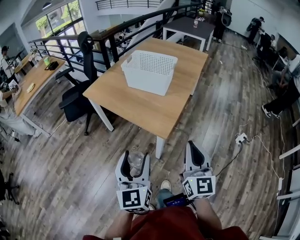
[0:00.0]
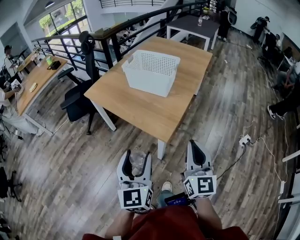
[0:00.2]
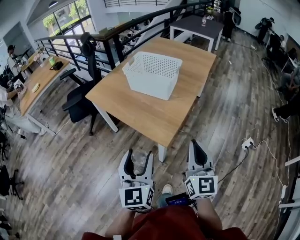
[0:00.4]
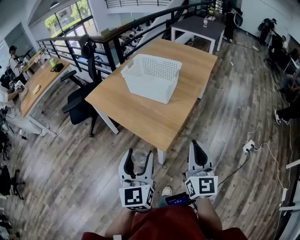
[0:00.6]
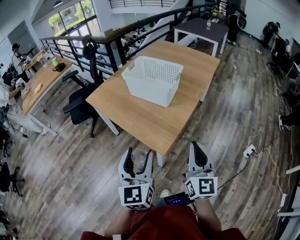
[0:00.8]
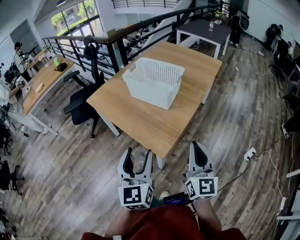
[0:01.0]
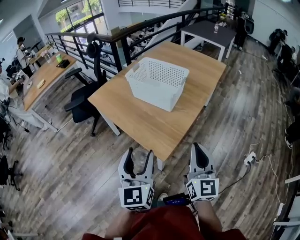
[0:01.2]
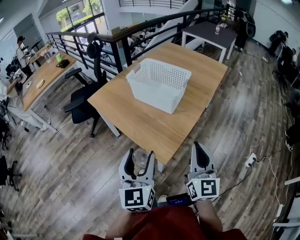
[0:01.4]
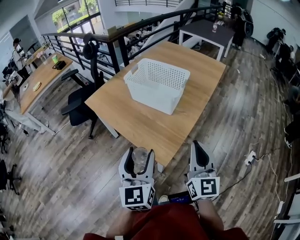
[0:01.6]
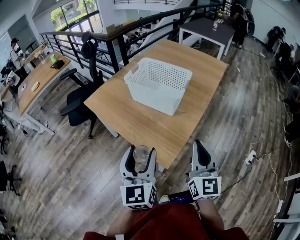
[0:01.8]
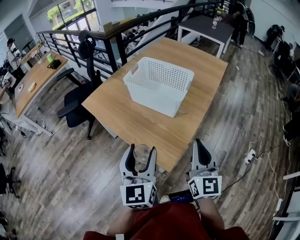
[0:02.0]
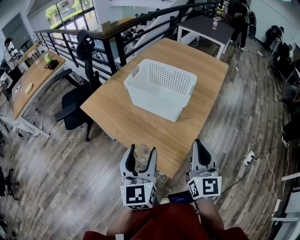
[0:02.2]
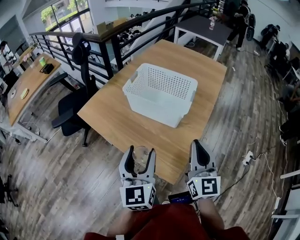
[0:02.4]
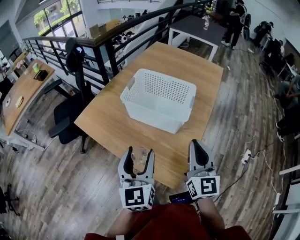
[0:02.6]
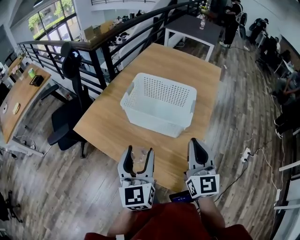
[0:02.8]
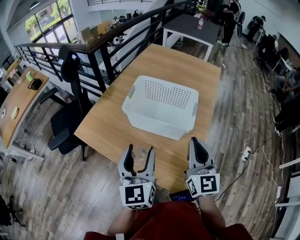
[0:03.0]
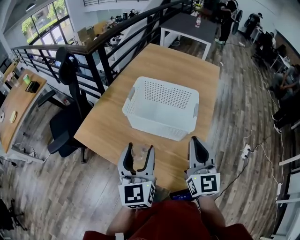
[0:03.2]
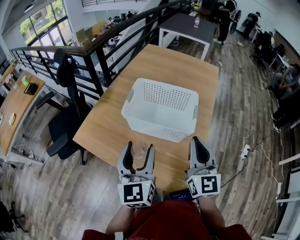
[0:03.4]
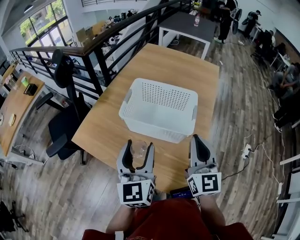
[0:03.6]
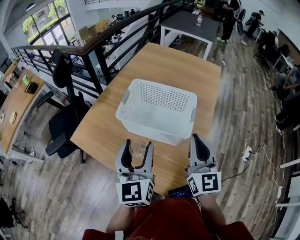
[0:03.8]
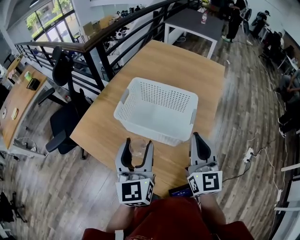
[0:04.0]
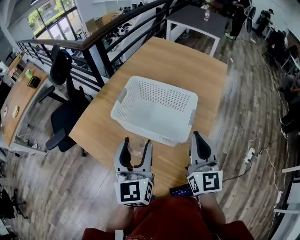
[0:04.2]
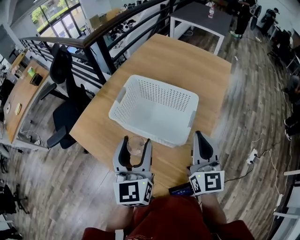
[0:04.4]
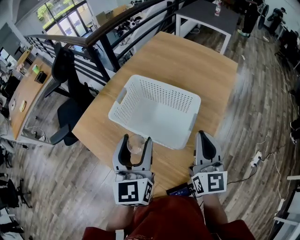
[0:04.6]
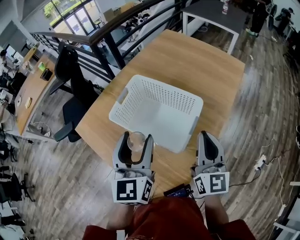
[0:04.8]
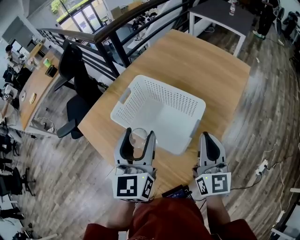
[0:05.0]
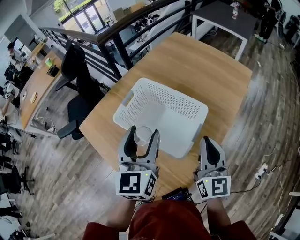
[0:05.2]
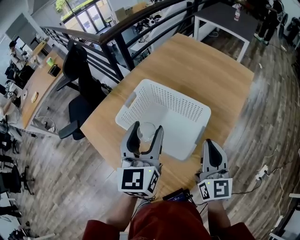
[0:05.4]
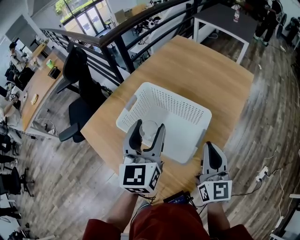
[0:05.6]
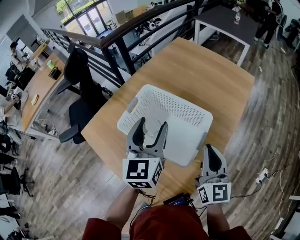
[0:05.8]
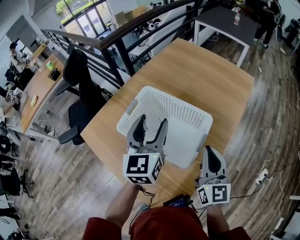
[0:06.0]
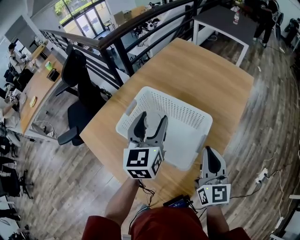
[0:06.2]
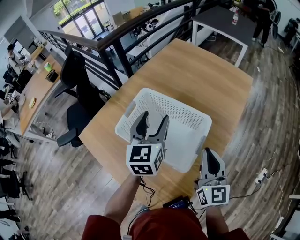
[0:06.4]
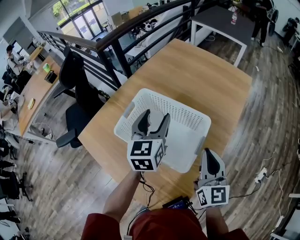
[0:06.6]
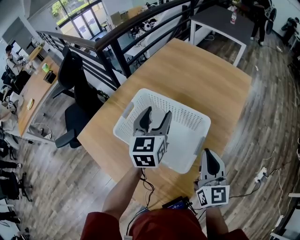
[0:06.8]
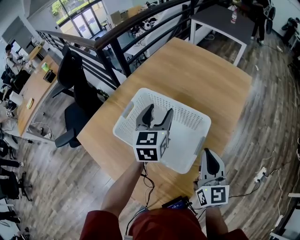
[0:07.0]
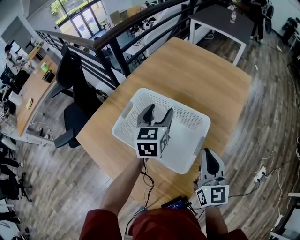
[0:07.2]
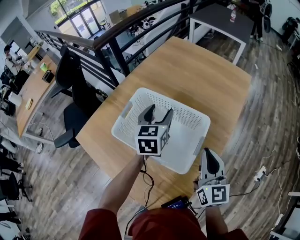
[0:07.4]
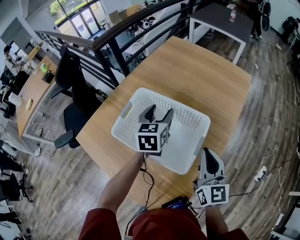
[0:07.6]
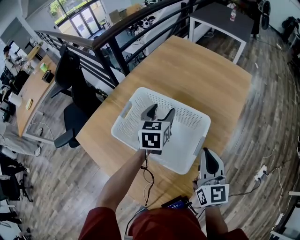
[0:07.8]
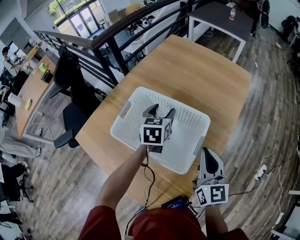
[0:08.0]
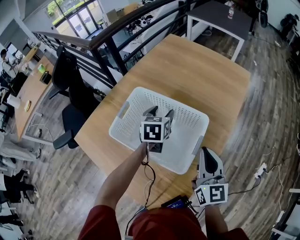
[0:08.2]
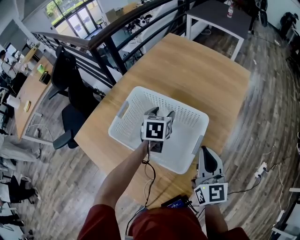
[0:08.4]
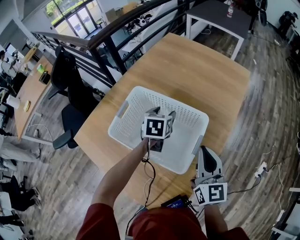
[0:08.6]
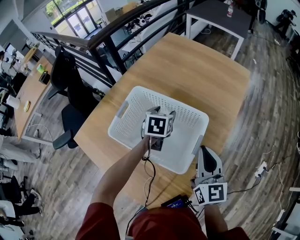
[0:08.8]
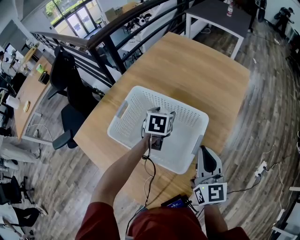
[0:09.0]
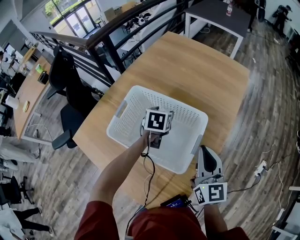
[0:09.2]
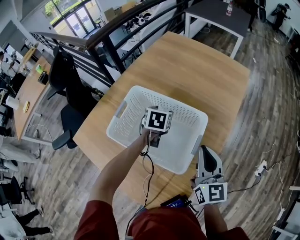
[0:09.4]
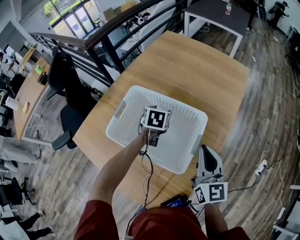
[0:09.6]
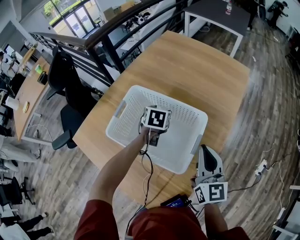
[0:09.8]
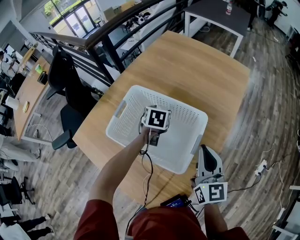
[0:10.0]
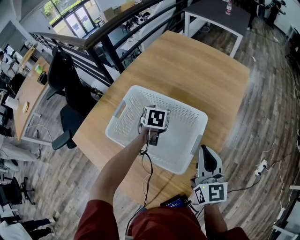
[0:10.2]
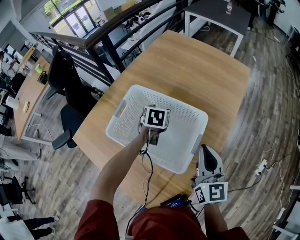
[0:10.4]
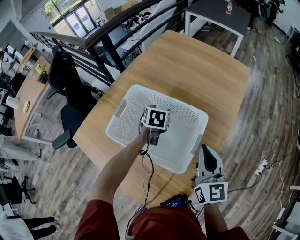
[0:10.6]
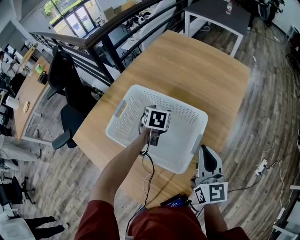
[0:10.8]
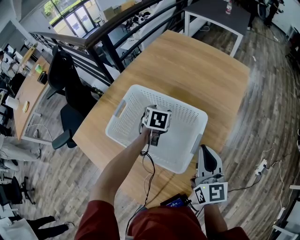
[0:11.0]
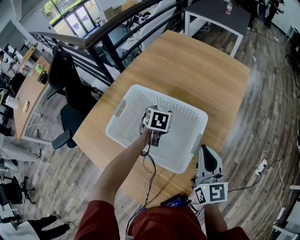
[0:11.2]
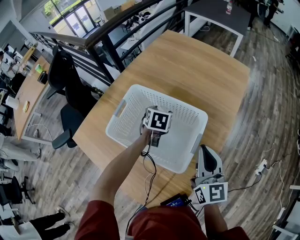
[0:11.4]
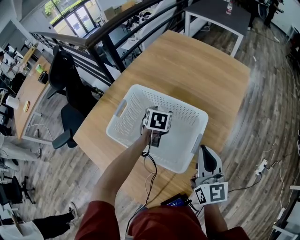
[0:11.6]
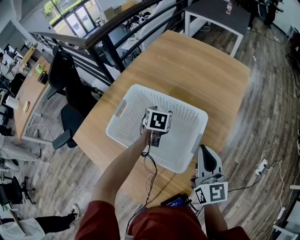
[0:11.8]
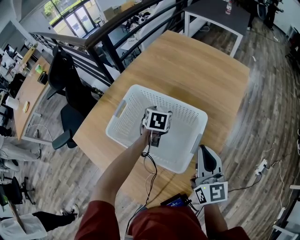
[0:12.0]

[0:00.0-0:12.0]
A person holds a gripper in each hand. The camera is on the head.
0:00.0 to 0:01.6: Both grippers travel together forward, some 15 cm.
0:01.6 to 0:03.0: The left gripper is displaced forward by roughly 20 cm. The right gripper shifts some 20 cm forward and to the left.
0:03.0 to 0:04.4: Both grippers travel together forward and to the right, some 10 cm.
0:04.4 to 0:06.0: The right gripper is displaced forward by about 5 cm; the left gripper heads forward, covering roughly 15 cm.
0:06.0 to 0:07.6: The left gripper travels downward and forward by about 15 cm, and rotates about 20 degrees.
0:07.6 to 0:09.0: The left gripper shifts approximately 10 cm downward, and rotates about 20 degrees.
0:09.0 to 0:10.4: The grippers make only small movements.
0:10.4 to 0:12.0: Neither gripper changes place.

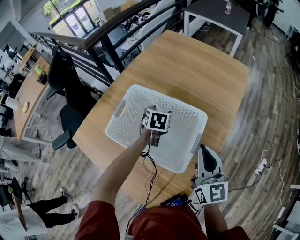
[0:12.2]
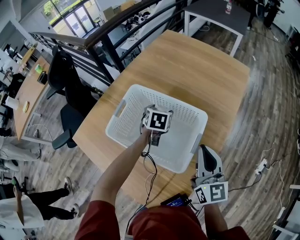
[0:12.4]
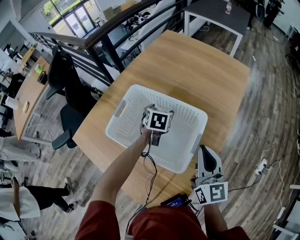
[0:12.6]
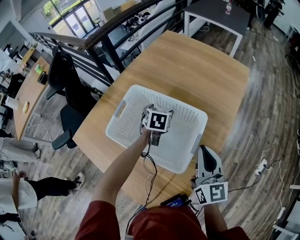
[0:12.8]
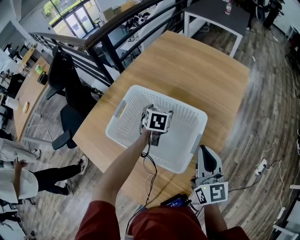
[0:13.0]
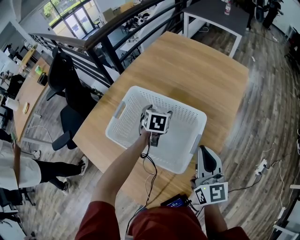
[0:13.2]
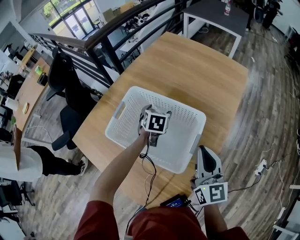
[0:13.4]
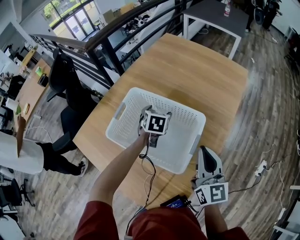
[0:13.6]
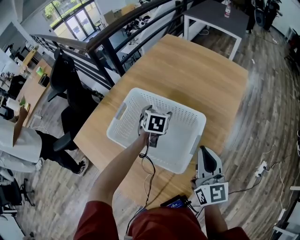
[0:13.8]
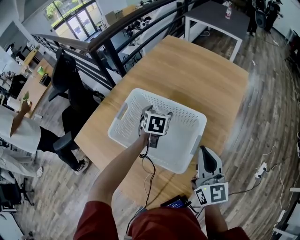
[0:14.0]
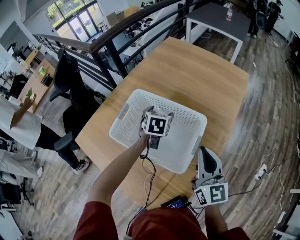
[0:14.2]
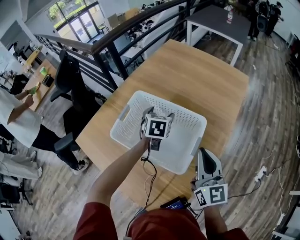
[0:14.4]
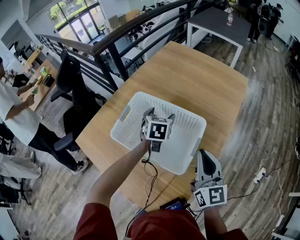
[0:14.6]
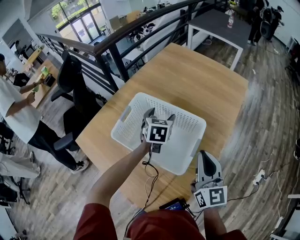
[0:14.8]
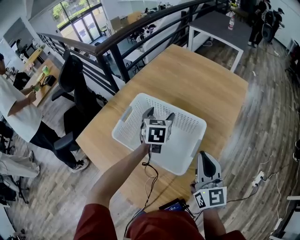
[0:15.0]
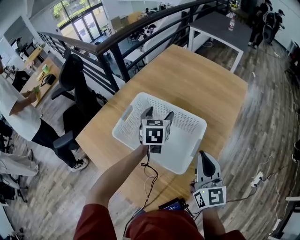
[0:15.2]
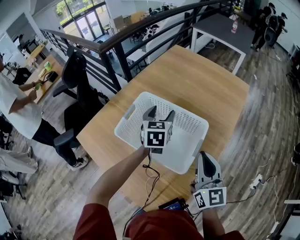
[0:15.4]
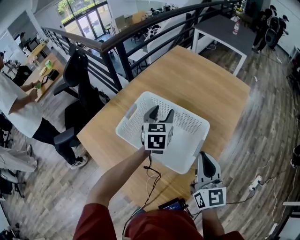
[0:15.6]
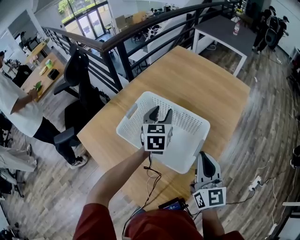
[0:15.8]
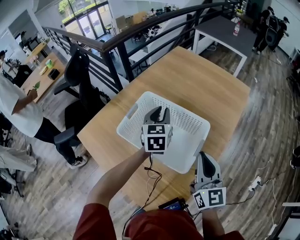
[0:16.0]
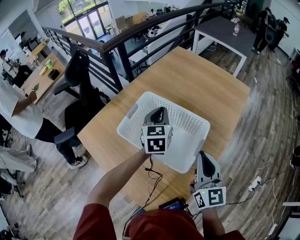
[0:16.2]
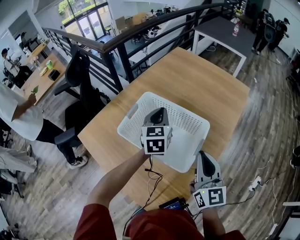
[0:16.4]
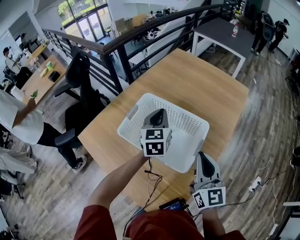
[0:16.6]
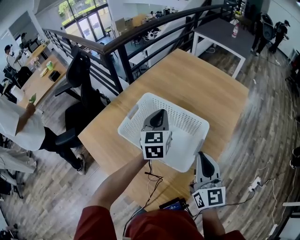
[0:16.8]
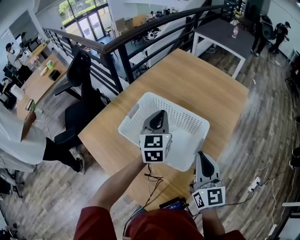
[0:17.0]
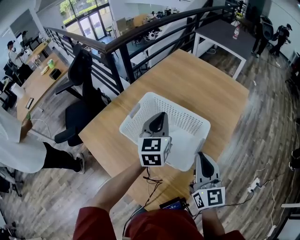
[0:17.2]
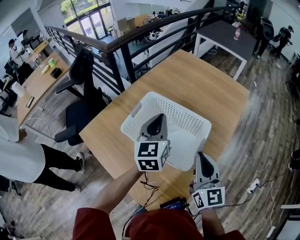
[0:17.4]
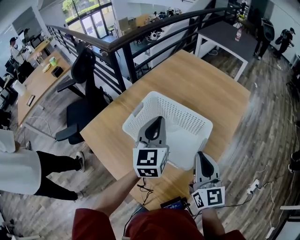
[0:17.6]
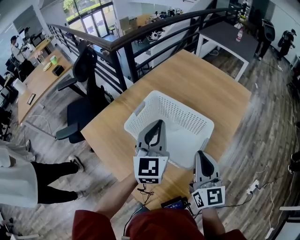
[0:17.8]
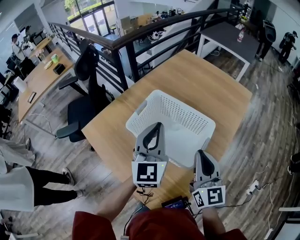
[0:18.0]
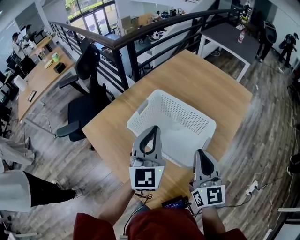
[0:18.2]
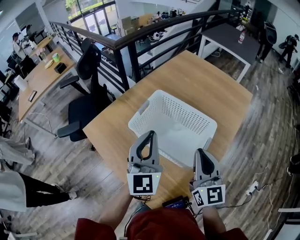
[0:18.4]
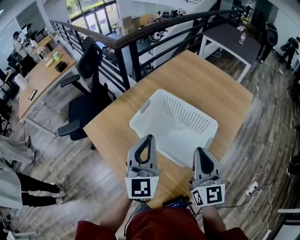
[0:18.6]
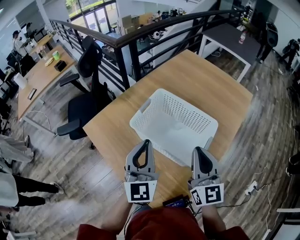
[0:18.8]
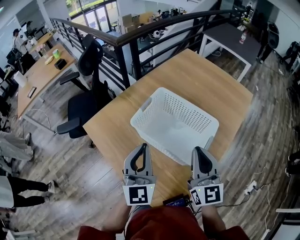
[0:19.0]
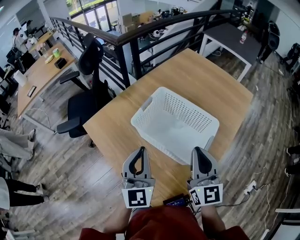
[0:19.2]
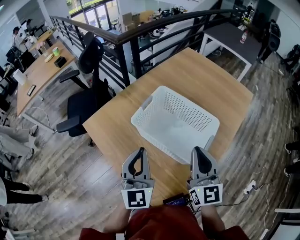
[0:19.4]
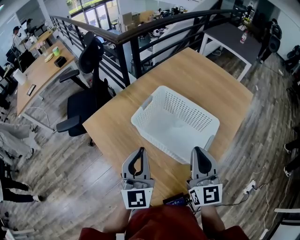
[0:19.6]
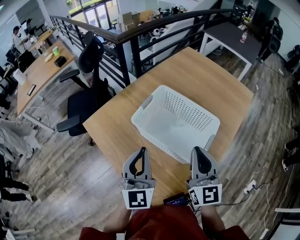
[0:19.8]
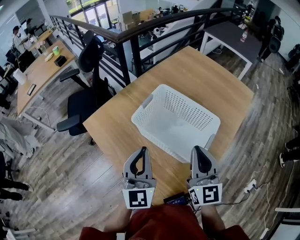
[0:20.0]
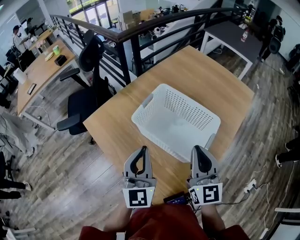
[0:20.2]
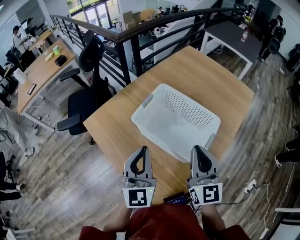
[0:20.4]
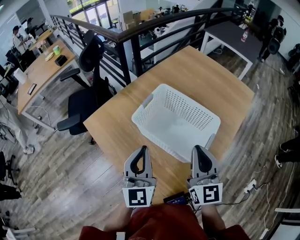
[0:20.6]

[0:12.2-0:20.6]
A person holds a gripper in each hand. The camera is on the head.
0:12.2 to 0:13.6: The grippers make only small movements.
0:13.6 to 0:15.0: The left gripper is displaced upward by some 10 cm.
0:15.0 to 0:16.4: The left gripper shifts about 5 cm upward, and closes its fingers.
0:16.4 to 0:17.8: The left gripper heads backward and upward, covering roughly 15 cm.
0:17.8 to 0:19.2: The left gripper heads backward and to the left, covering roughly 15 cm.
0:19.2 to 0:20.6: Both grippers stay put.

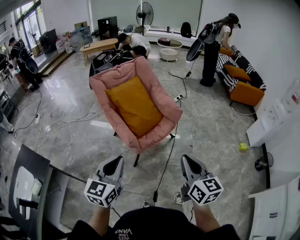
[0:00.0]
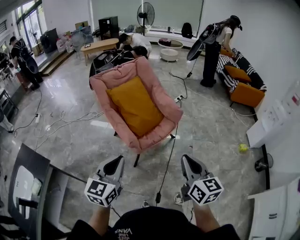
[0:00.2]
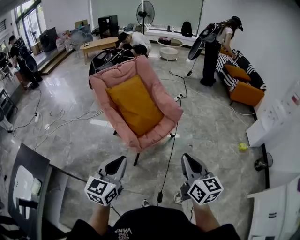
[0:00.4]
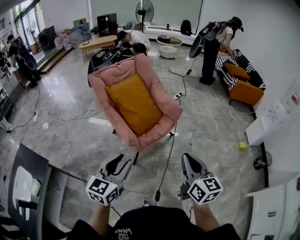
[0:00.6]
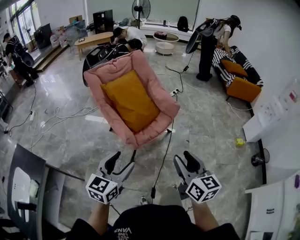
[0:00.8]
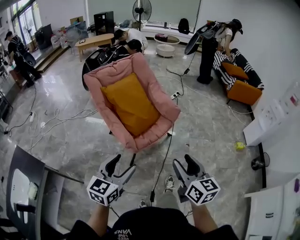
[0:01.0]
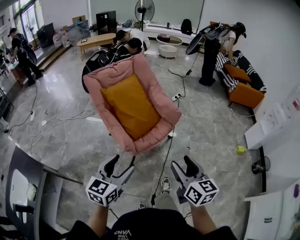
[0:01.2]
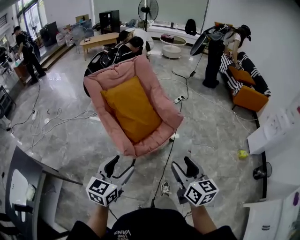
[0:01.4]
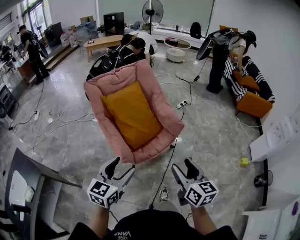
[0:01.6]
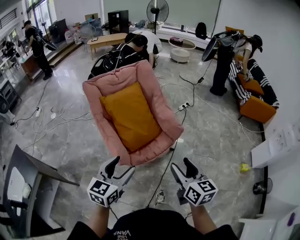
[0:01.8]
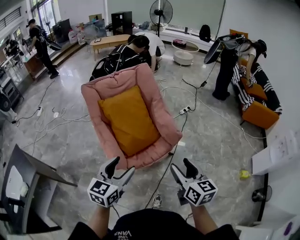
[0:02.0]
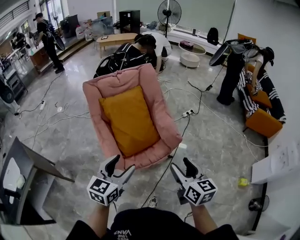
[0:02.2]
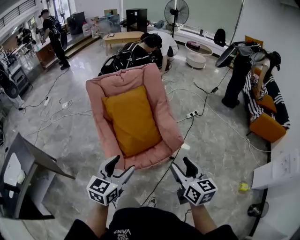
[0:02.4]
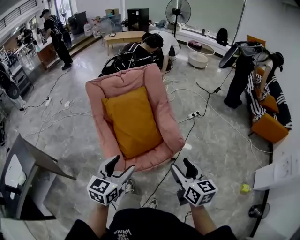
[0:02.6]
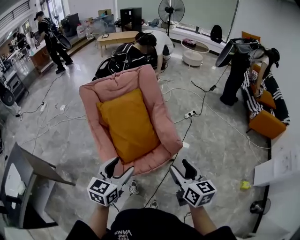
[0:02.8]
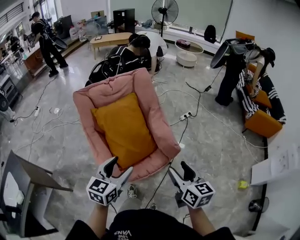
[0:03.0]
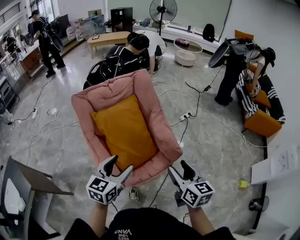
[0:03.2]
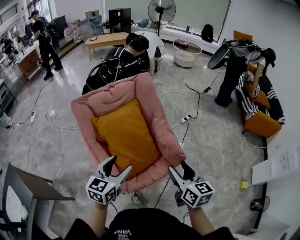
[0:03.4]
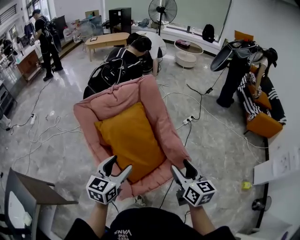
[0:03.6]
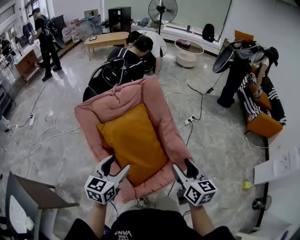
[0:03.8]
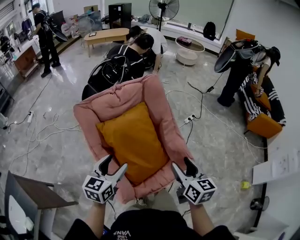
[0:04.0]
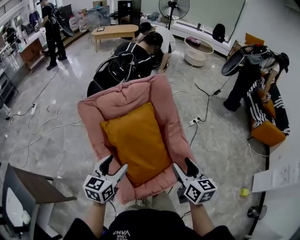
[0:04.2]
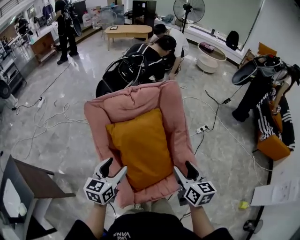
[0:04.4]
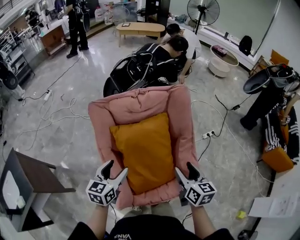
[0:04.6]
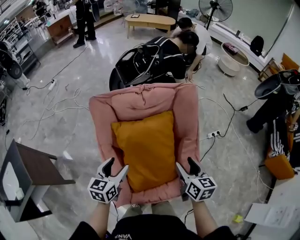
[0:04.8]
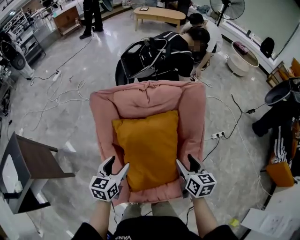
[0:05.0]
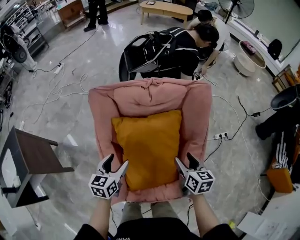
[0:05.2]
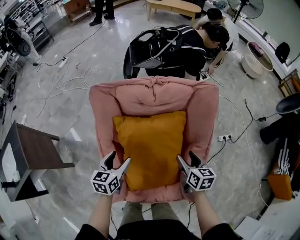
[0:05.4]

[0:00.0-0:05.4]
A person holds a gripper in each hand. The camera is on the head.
0:00.0 to 0:01.4: Both grippers move forward, some 10 cm. The right gripper opens up. The left gripper opens its fingers.
0:01.4 to 0:02.8: The grippers both shift forward and to the right by roughly 25 cm.
0:02.8 to 0:04.0: The grippers both shift forward and to the left by roughly 25 cm.
0:04.0 to 0:05.4: The left gripper shifts approximately 15 cm downward, and swivels approximately 40 degrees. The right gripper moves roughly 35 cm, and turns by about 30 degrees.